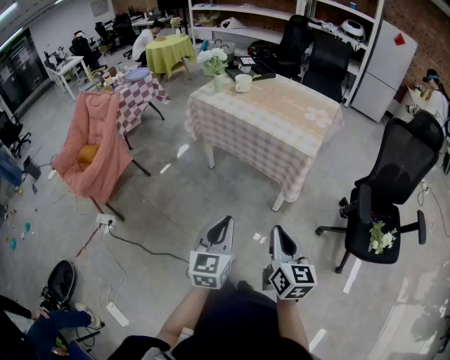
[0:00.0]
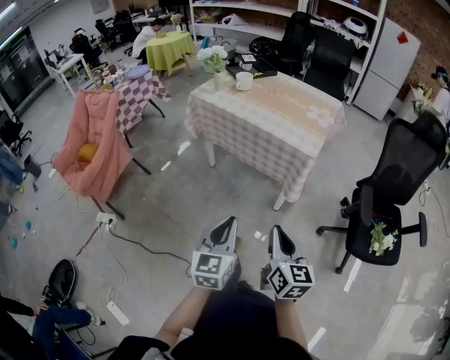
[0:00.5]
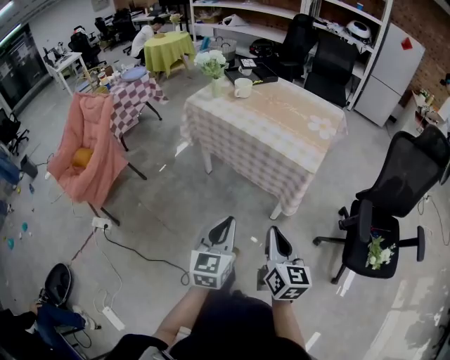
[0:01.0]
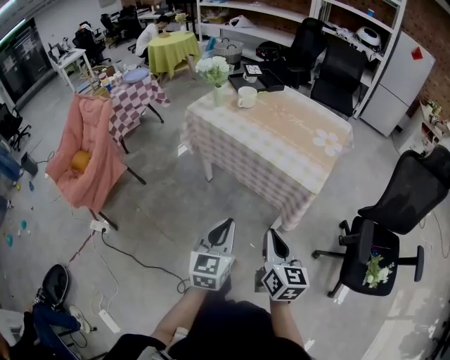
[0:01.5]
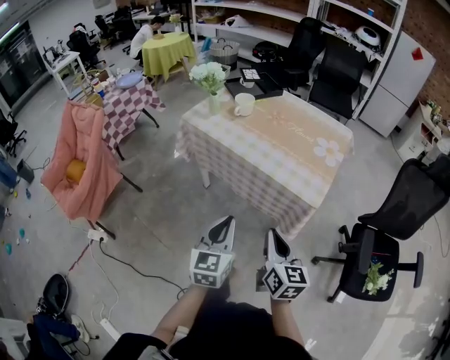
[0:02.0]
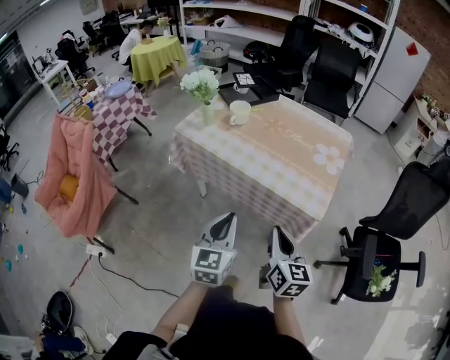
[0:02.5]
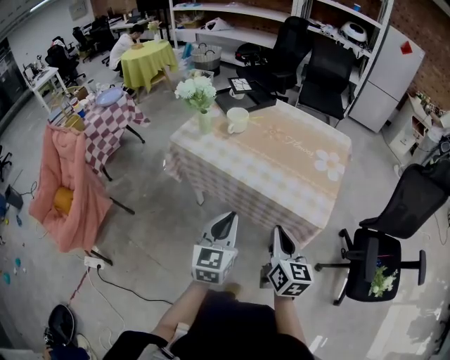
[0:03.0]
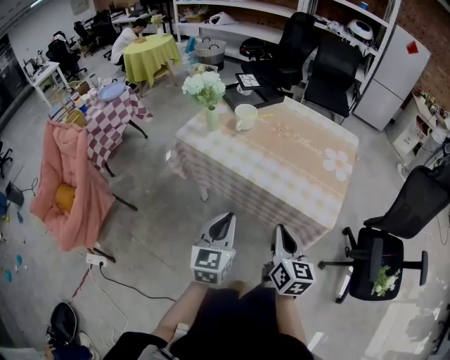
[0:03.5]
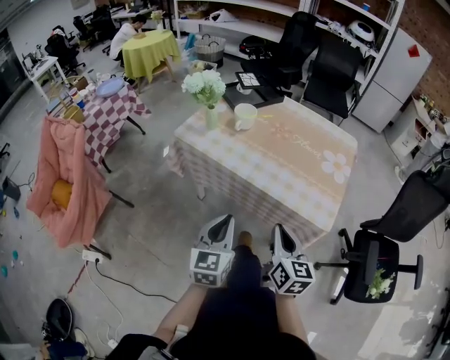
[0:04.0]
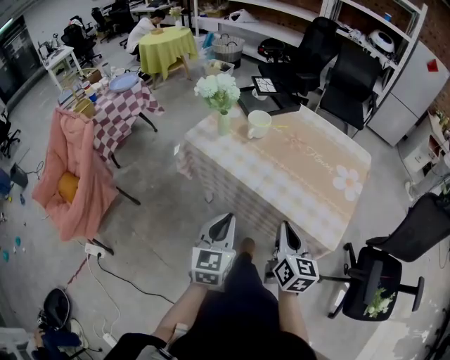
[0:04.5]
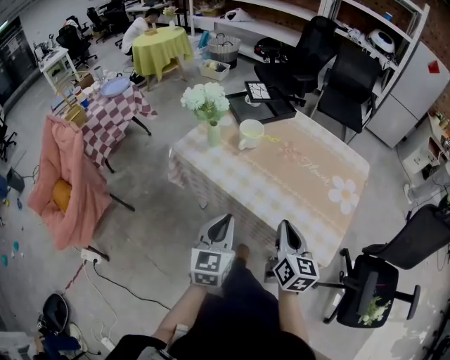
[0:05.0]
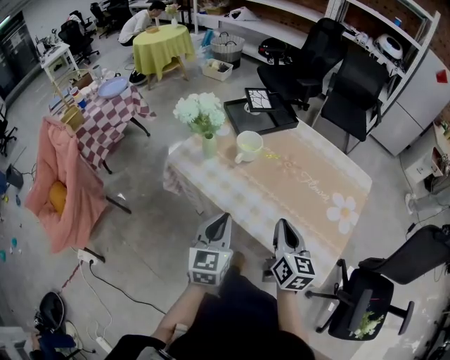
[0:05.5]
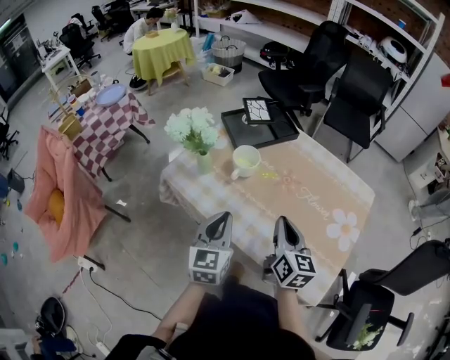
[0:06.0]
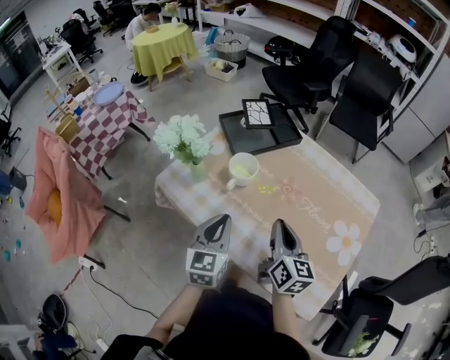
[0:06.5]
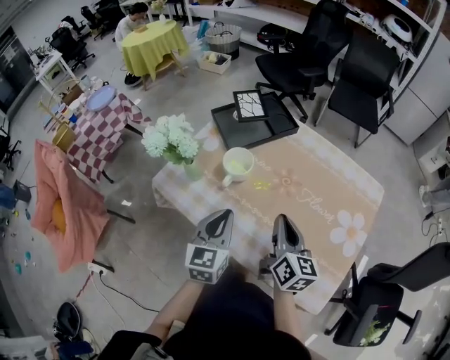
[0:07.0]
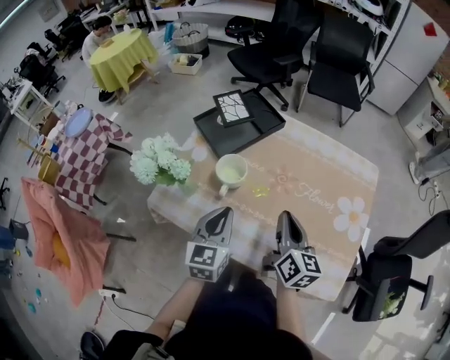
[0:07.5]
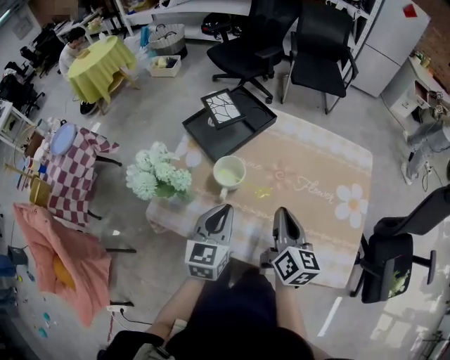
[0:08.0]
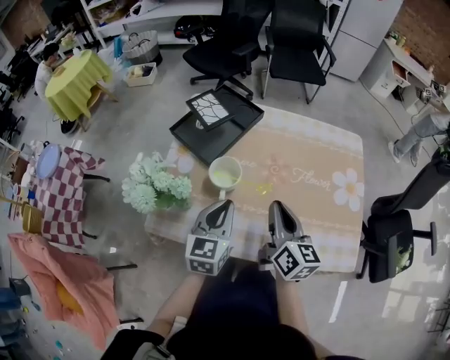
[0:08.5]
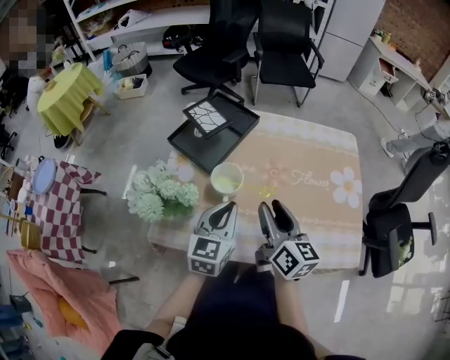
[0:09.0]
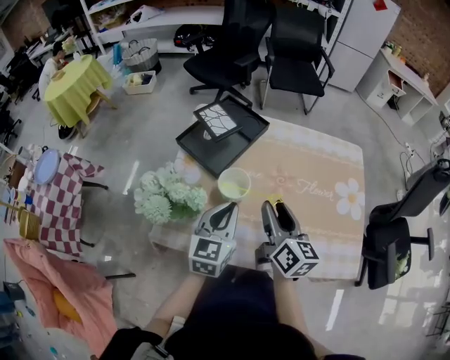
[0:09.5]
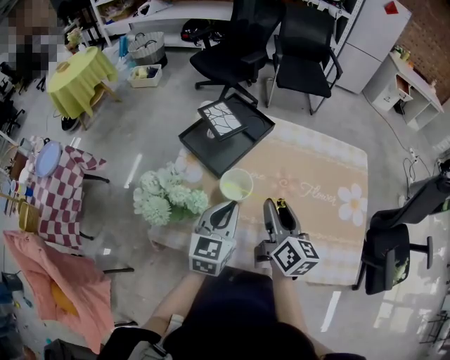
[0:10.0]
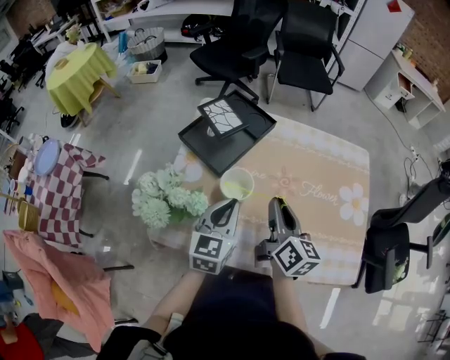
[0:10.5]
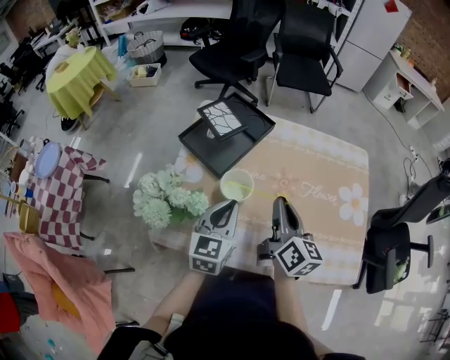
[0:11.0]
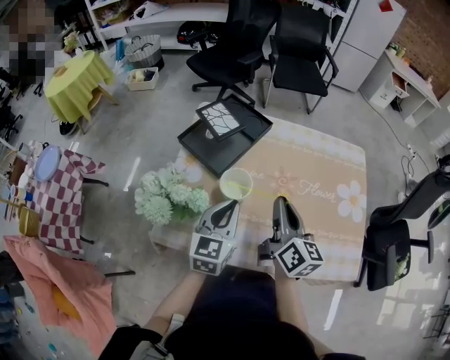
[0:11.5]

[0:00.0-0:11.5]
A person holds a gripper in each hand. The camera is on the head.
0:00.0 to 0:02.0: The two grippers go roughly 25 cm forward.
0:02.0 to 0:04.0: The left gripper goes about 15 cm forward and to the left. The right gripper goes some 15 cm forward.
0:04.0 to 0:06.0: The two grippers go approximately 25 cm forward.
0:06.0 to 0:07.5: The left gripper heads forward, covering about 10 cm, while the right gripper shifts some 5 cm forward.
0:07.5 to 0:09.5: The left gripper goes roughly 5 cm forward. Meanwhile the right gripper shifts about 10 cm to the left, and opens its fingers.
0:09.5 to 0:11.5: The right gripper closes up.

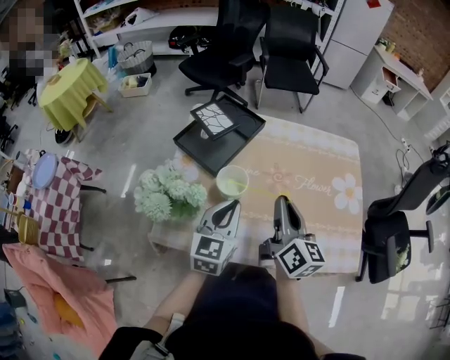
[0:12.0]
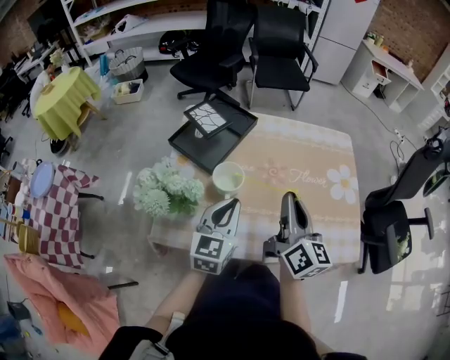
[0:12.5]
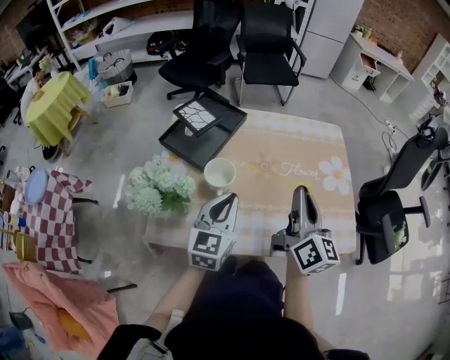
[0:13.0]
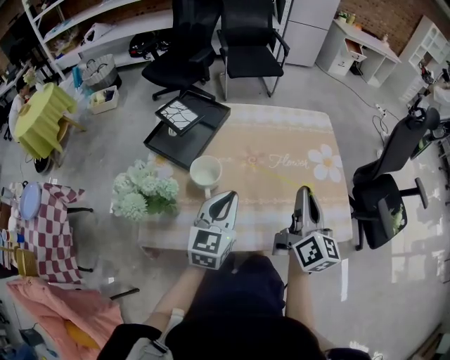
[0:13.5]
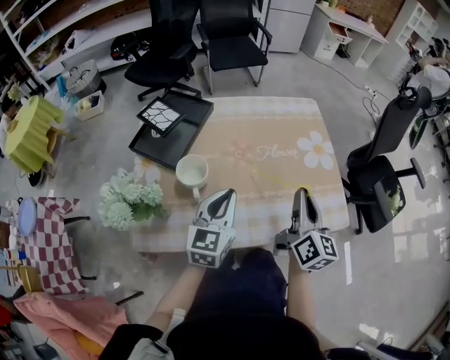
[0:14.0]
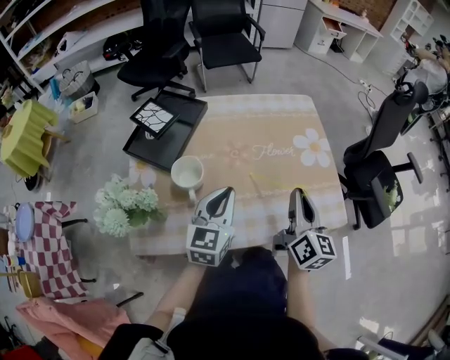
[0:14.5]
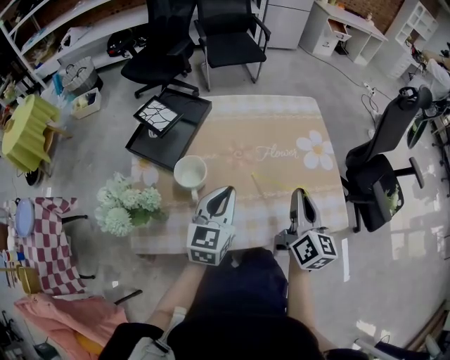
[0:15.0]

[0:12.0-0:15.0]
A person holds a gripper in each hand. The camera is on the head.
0:12.0 to 0:13.5: The right gripper is displaced to the right by some 10 cm, while the left gripper shifts approximately 5 cm to the right.
0:13.5 to 0:15.0: The right gripper changes place by some 5 cm.

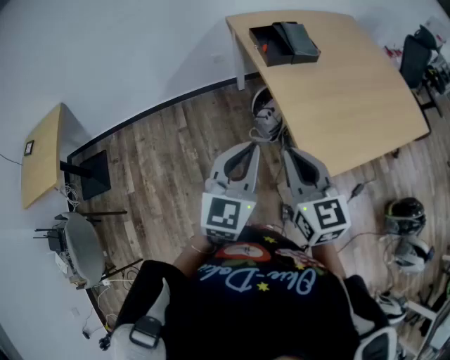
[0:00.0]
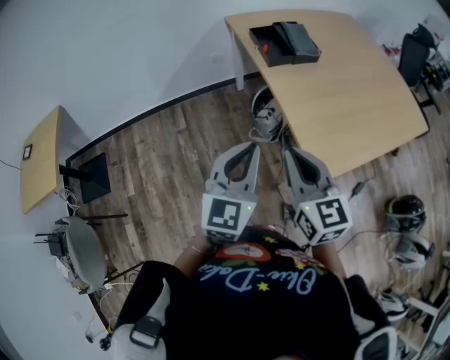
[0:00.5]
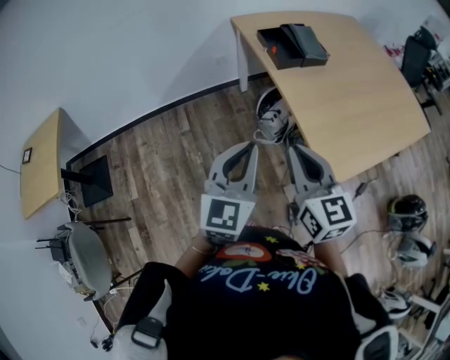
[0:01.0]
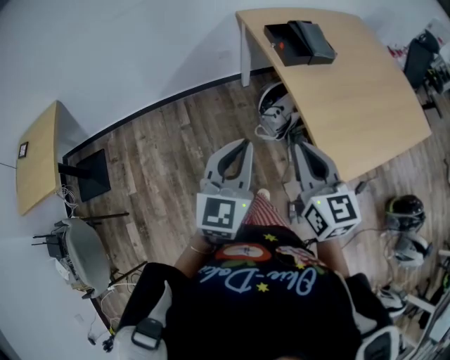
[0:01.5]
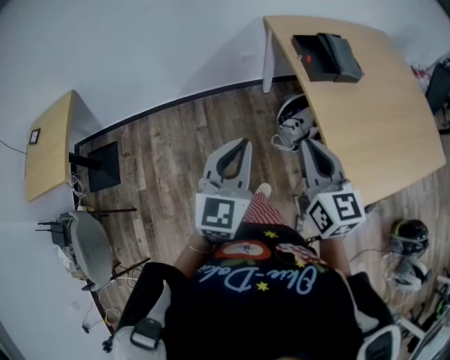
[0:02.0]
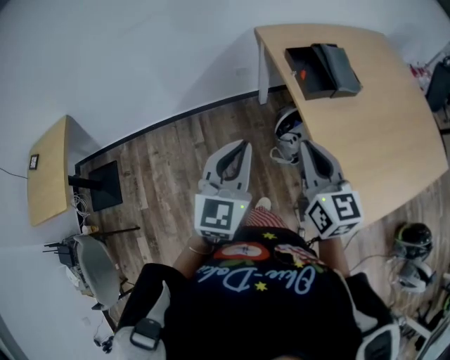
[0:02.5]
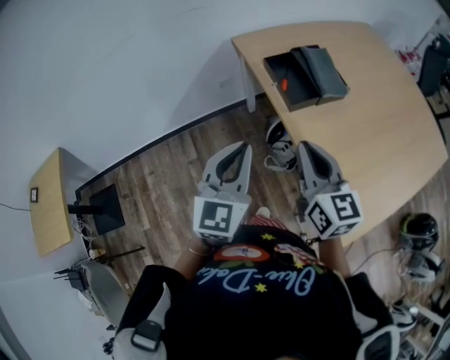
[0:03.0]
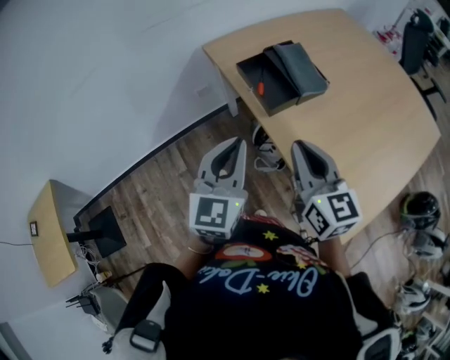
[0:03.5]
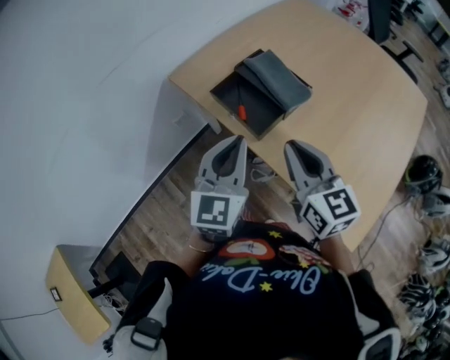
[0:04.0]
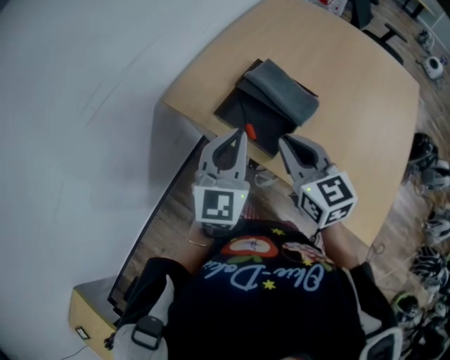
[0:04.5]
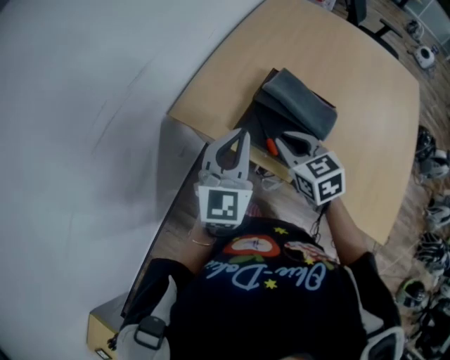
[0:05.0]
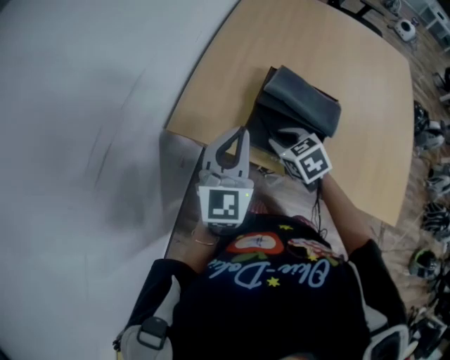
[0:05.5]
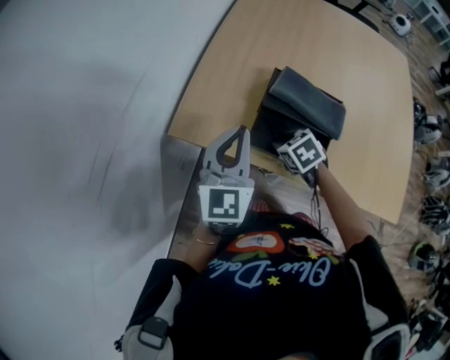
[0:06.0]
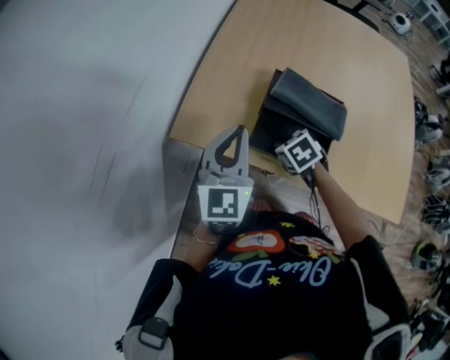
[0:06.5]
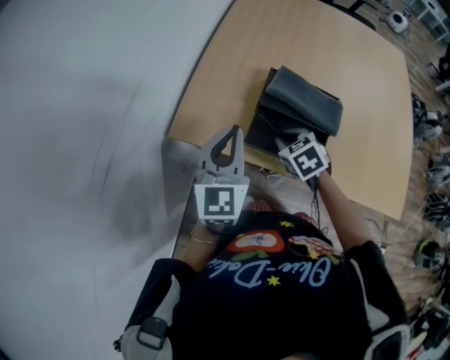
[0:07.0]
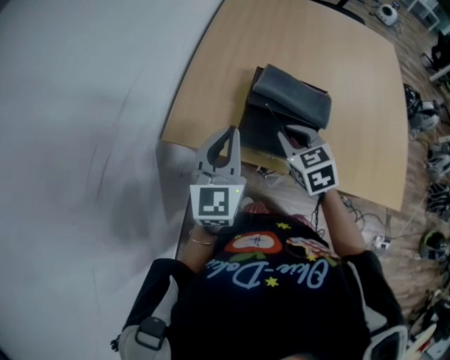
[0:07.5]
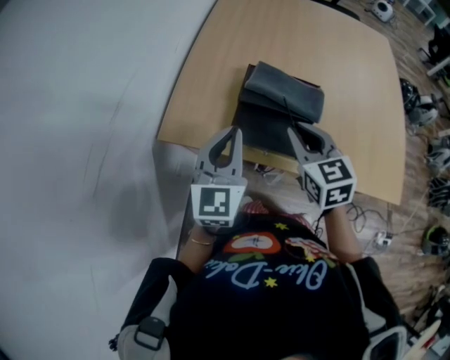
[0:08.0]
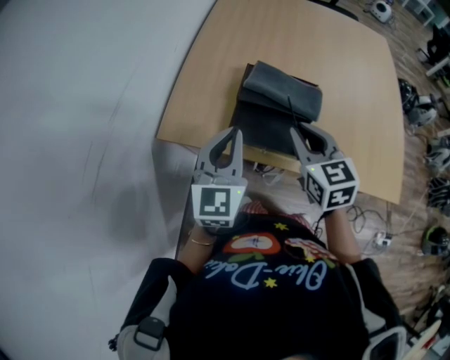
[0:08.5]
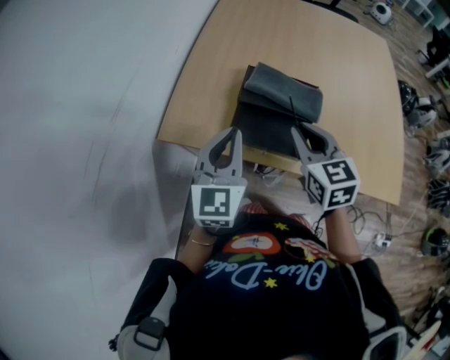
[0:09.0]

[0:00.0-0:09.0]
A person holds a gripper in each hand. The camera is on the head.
0:00.0 to 0:02.0: The left gripper heads to the left and forward, covering some 20 cm, while the right gripper goes about 15 cm forward and to the left.
0:02.0 to 0:04.5: The left gripper moves approximately 50 cm, and changes its angle by approximately 40 degrees; the right gripper ends up roughly 40 cm from where it was, and swivels about 30 degrees.
0:04.5 to 0:07.0: The right gripper is displaced downward, forward and to the left by some 20 cm, and tilts its fingers about 40 degrees downward. Meanwhile the left gripper shifts roughly 15 cm to the left and forward.
0:07.0 to 0:09.0: The left gripper shifts approximately 5 cm to the right. Meanwhile the right gripper heads upward and to the right, covering some 15 cm, and tips its fingers upward by some 30 degrees.

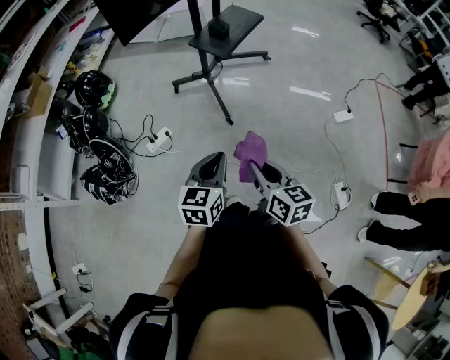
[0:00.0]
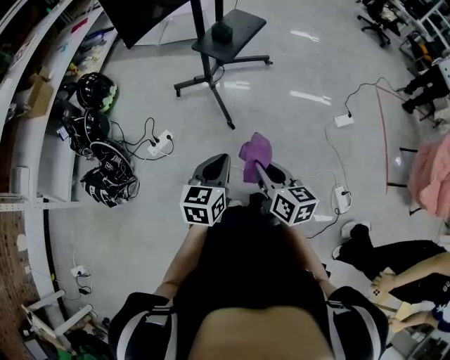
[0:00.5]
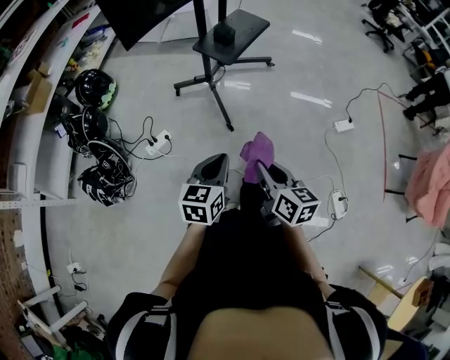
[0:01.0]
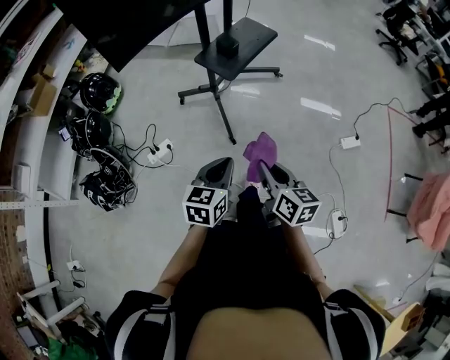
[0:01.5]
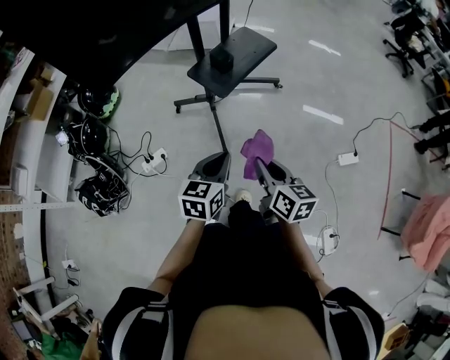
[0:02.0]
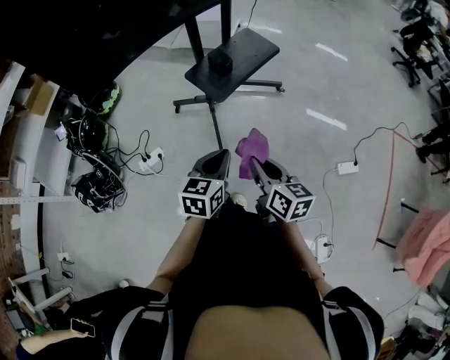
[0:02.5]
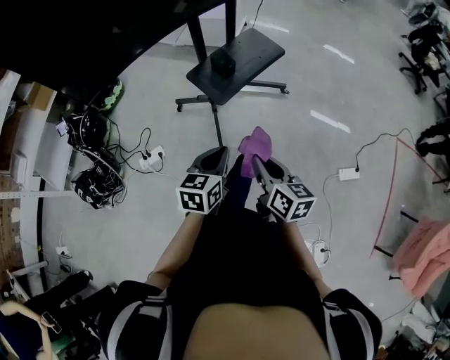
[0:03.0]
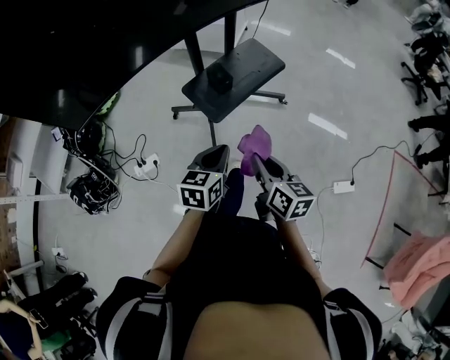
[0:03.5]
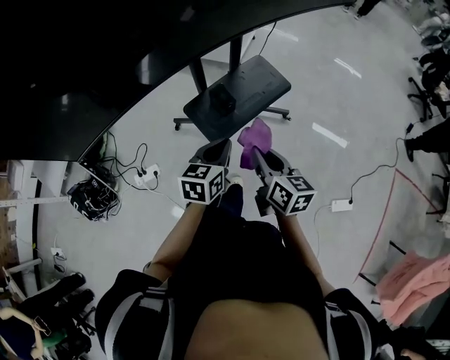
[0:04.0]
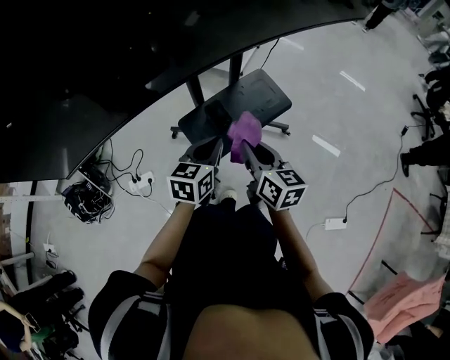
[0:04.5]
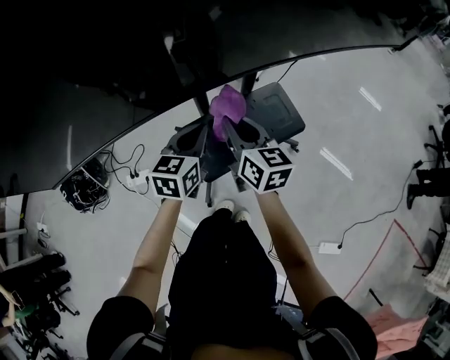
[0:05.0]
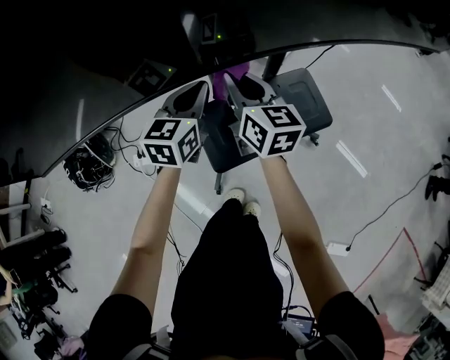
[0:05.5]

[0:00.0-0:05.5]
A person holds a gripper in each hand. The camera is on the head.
0:00.0 to 0:02.0: Both grippers move forward and to the right, approximately 25 cm.
0:02.0 to 0:03.5: The two grippers go about 15 cm forward.
0:03.5 to 0:05.5: The two grippers go approximately 40 cm forward. The right gripper changes its angle by approximately 30 degrees; the left gripper swivels some 30 degrees.
